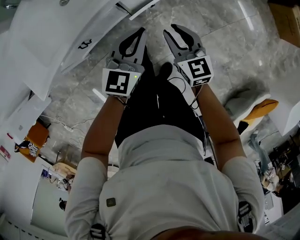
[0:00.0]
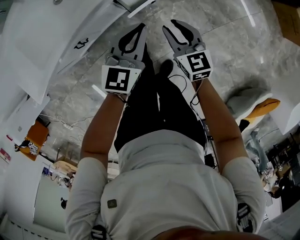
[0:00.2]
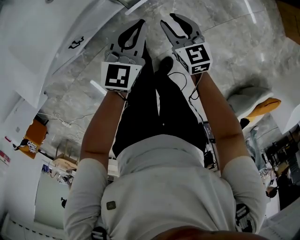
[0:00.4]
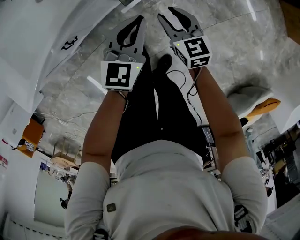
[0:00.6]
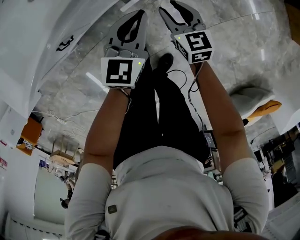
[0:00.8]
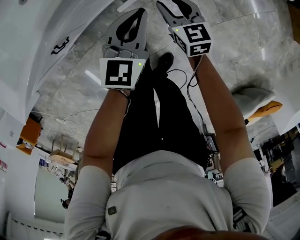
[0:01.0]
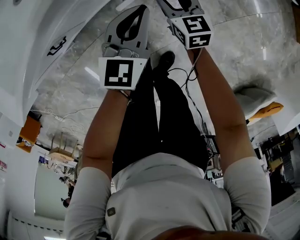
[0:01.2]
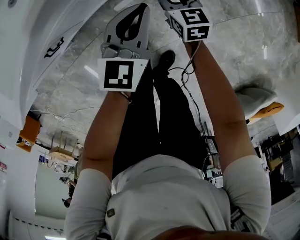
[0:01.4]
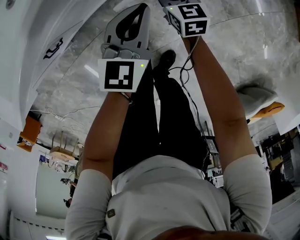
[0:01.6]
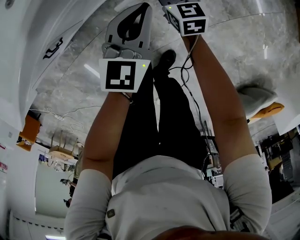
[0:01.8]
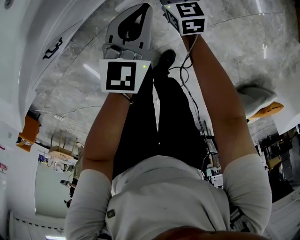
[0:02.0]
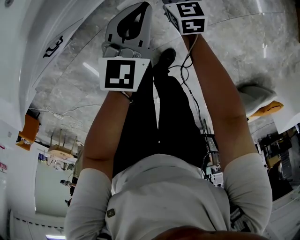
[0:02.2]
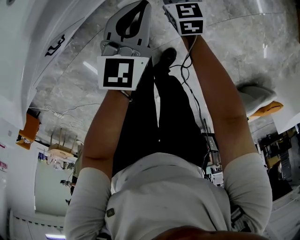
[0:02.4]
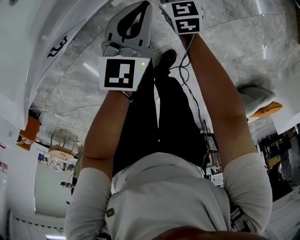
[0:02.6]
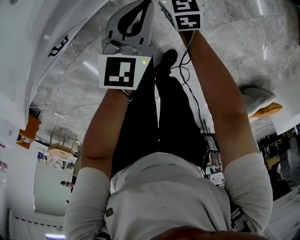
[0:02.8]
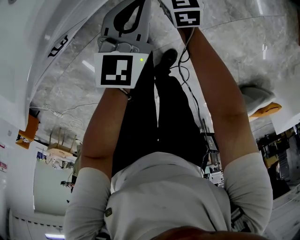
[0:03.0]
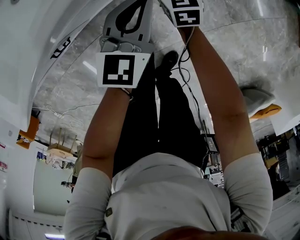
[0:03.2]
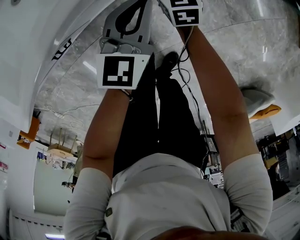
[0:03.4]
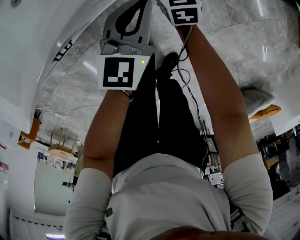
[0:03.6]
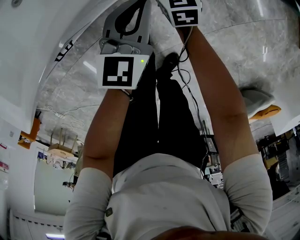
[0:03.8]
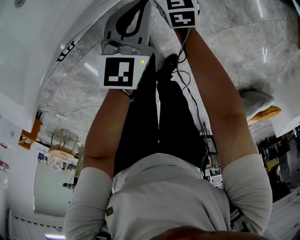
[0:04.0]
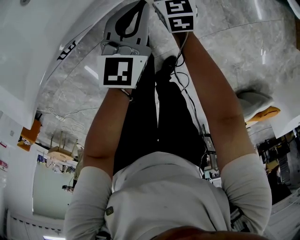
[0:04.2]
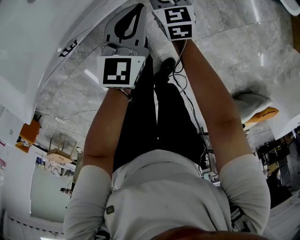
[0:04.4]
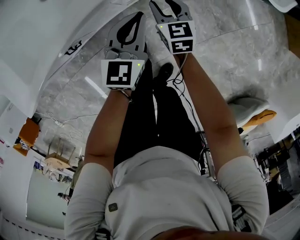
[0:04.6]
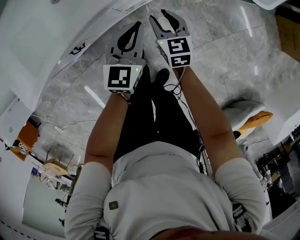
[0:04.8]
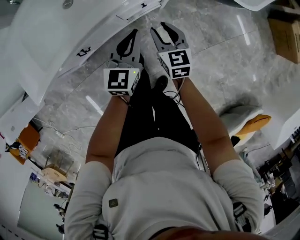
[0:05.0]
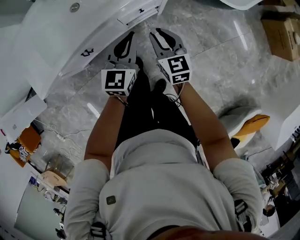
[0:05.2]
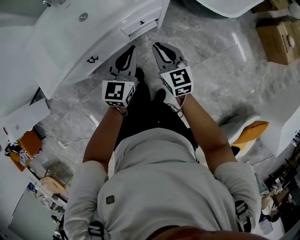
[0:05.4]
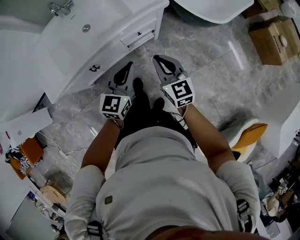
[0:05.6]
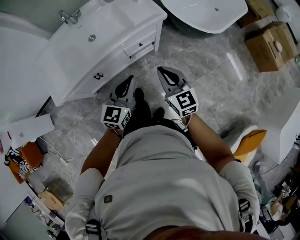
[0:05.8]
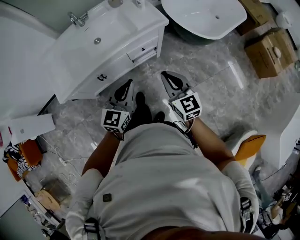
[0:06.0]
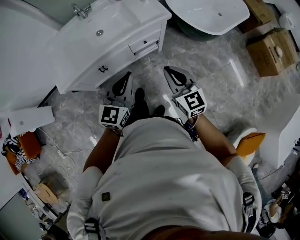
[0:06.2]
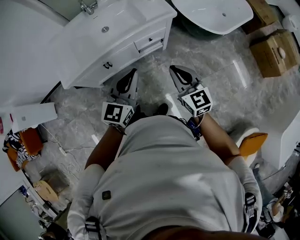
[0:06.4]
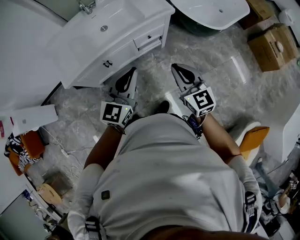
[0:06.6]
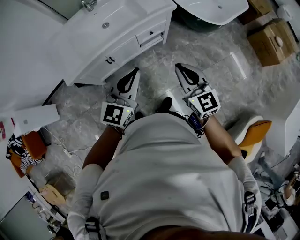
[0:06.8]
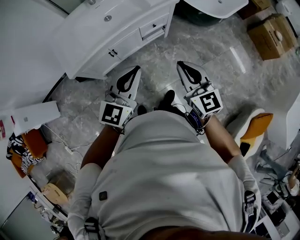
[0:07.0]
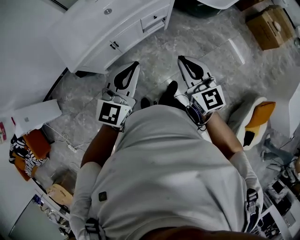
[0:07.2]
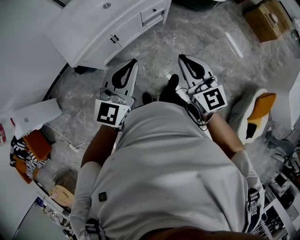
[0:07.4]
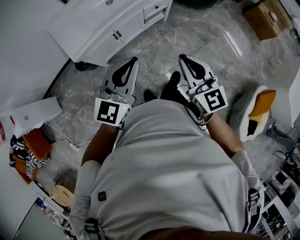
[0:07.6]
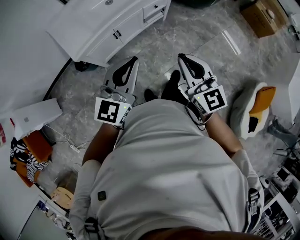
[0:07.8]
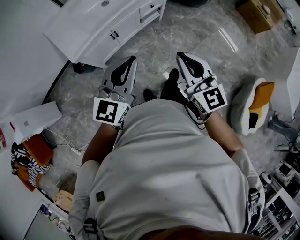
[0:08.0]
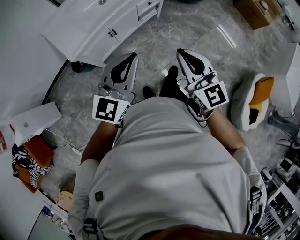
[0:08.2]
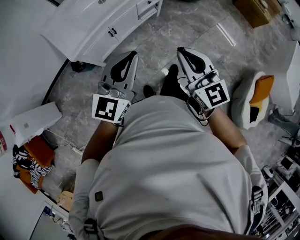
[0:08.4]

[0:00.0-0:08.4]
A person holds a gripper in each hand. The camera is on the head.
0:00.0 to 0:01.4: Both grippers move downward, about 25 cm.
0:01.4 to 0:02.8: The right gripper travels forward by approximately 5 cm.
0:02.8 to 0:04.2: The right gripper shifts by approximately 5 cm.
0:04.2 to 0:05.6: The grippers both shift upward and backward by roughly 50 cm. The right gripper swivels approximately 20 degrees, and closes its fingers.
0:05.6 to 0:07.0: The right gripper goes roughly 25 cm backward and upward; the left gripper goes roughly 30 cm backward, upward and to the left.
0:07.0 to 0:08.4: The two grippers go roughly 20 cm backward and to the left.

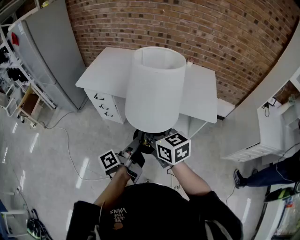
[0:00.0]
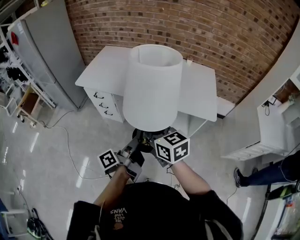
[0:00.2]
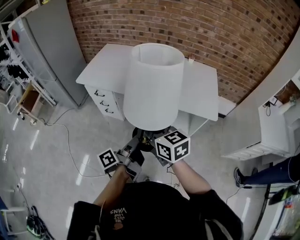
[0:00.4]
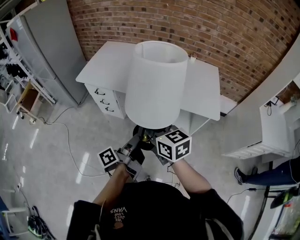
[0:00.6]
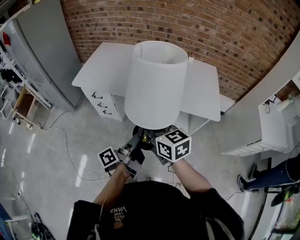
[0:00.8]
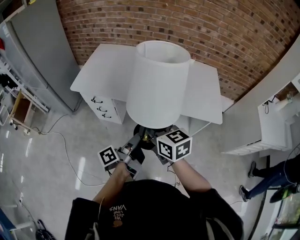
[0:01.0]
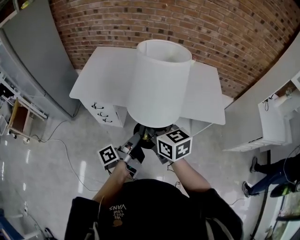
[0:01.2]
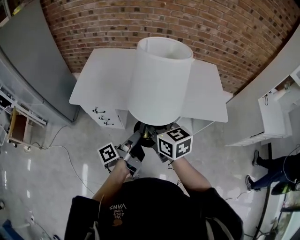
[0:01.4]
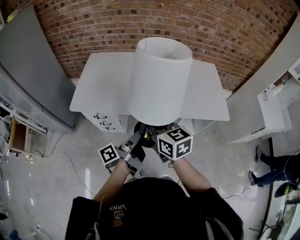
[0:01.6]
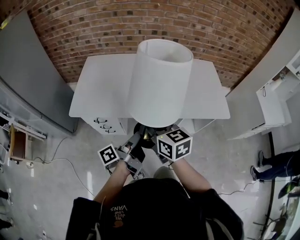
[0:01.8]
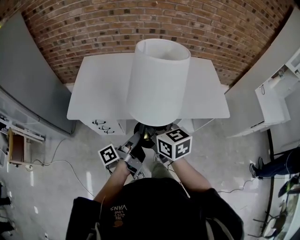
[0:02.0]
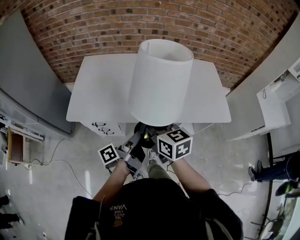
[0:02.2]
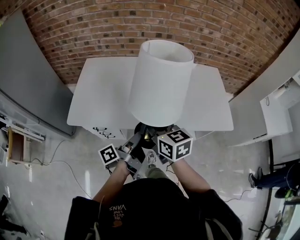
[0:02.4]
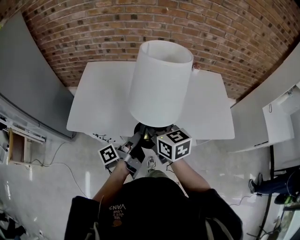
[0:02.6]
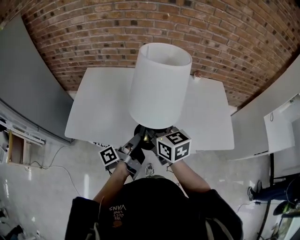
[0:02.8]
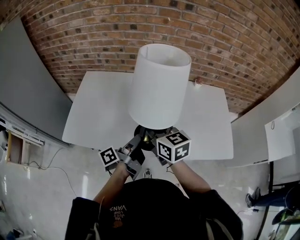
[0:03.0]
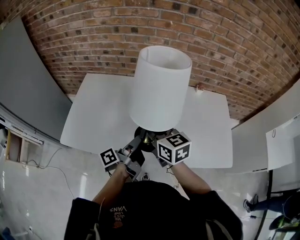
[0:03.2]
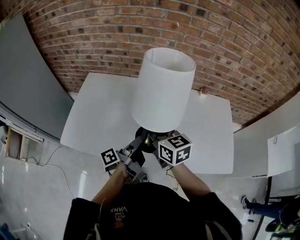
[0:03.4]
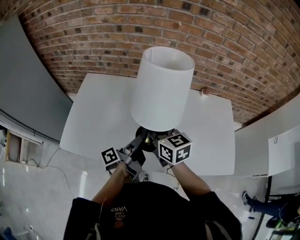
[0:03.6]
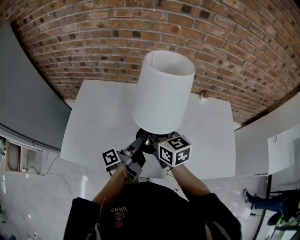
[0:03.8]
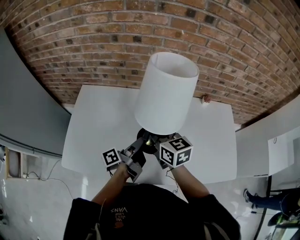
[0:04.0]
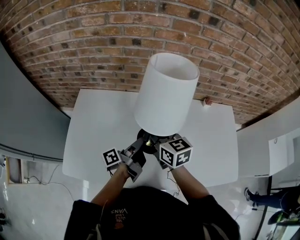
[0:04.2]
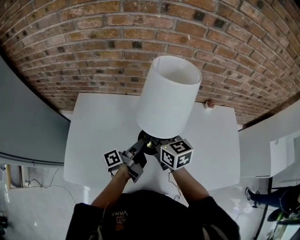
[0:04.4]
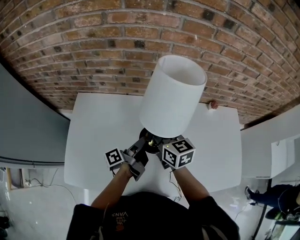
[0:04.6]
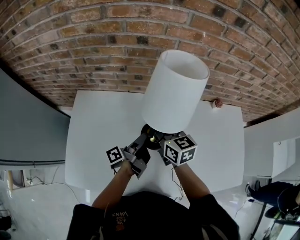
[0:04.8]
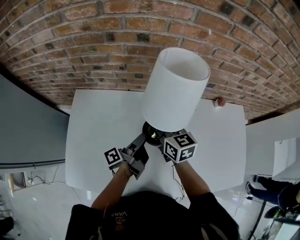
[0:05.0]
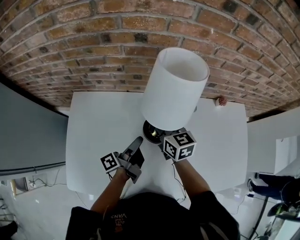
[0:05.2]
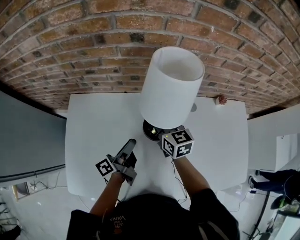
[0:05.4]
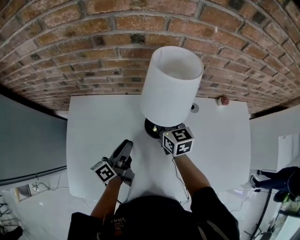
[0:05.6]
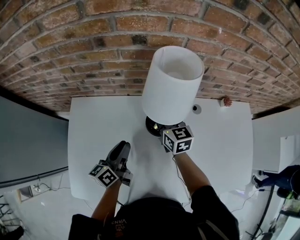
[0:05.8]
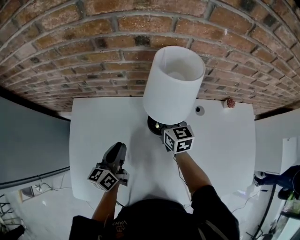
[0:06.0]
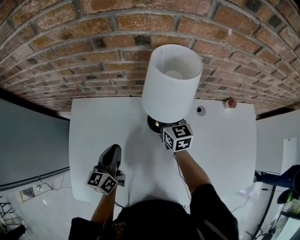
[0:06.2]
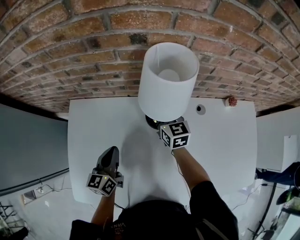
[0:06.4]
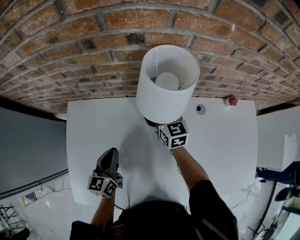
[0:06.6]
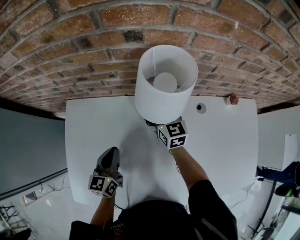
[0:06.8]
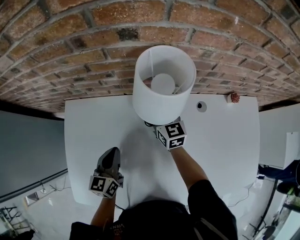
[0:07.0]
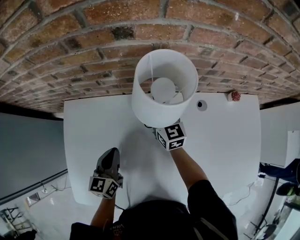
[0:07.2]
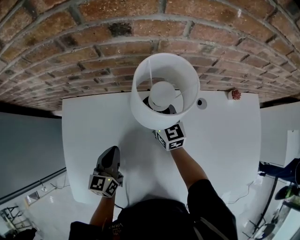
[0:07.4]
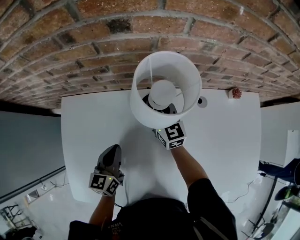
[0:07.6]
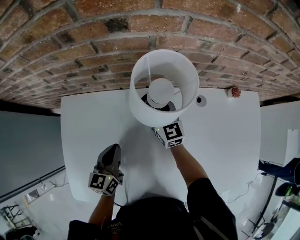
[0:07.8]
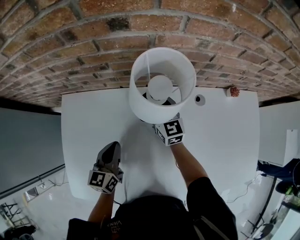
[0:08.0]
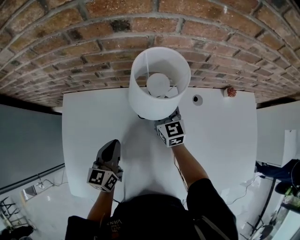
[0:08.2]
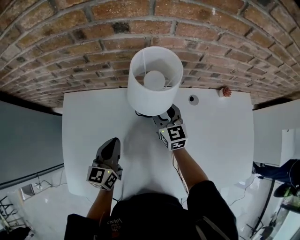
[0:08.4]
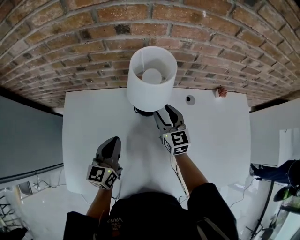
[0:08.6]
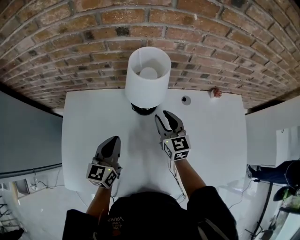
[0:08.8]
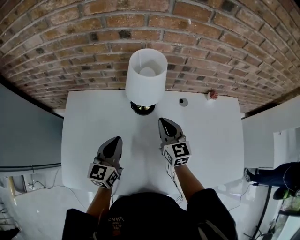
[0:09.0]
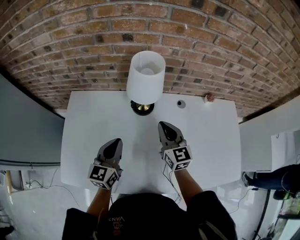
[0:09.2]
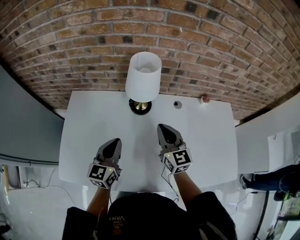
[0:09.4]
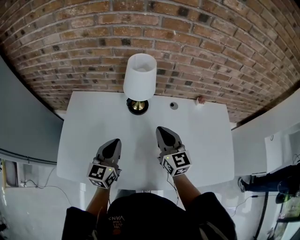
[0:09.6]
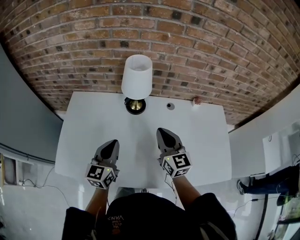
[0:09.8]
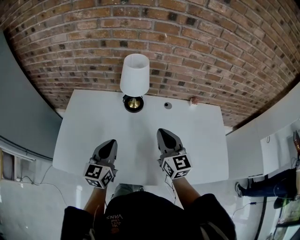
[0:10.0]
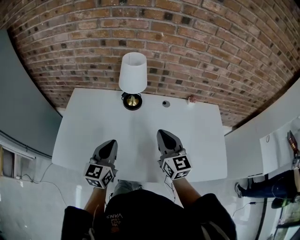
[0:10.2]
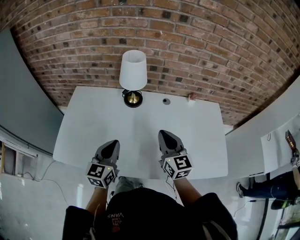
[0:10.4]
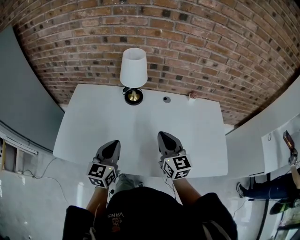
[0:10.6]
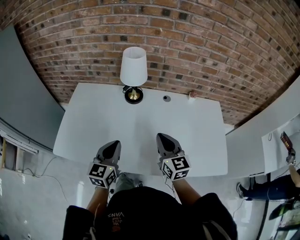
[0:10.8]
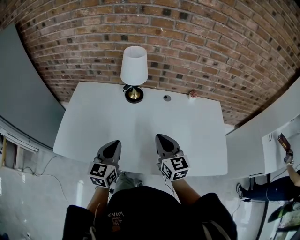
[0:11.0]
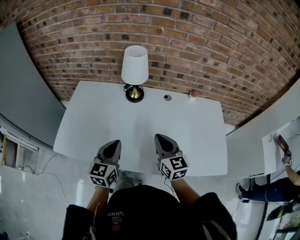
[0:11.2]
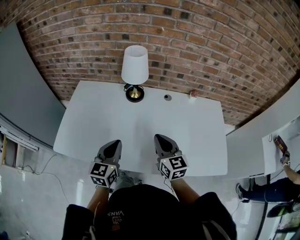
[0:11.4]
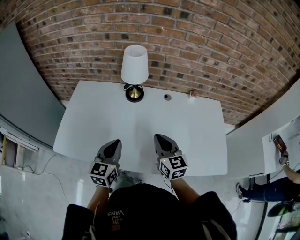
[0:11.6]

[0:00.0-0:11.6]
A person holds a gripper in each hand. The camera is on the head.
0:00.0 to 0:01.4: Both grippers travel together forward and to the left, roughly 20 cm.
0:01.4 to 0:02.8: The grippers both shift forward by some 20 cm.
0:02.8 to 0:04.4: Both grippers move forward, about 30 cm.
0:04.4 to 0:05.8: The left gripper shifts roughly 15 cm to the left and forward, and rolls clockwise, seen from behind, by about 40 degrees. The right gripper moves forward and downward, approximately 20 cm.
0:05.8 to 0:07.2: The left gripper changes its angle by approximately 30 degrees, and closes. Meanwhile the right gripper moves roughly 5 cm.
0:07.2 to 0:08.8: The left gripper goes some 10 cm upward and to the right. The right gripper shifts about 15 cm backward, to the right and upward.
0:08.8 to 0:10.2: The left gripper travels backward, upward and to the right by roughly 20 cm. The right gripper is displaced backward and upward by about 25 cm, and closes its fingers.
0:10.2 to 0:11.6: The two grippers go roughly 5 cm backward.

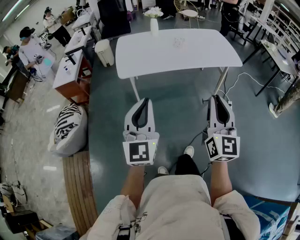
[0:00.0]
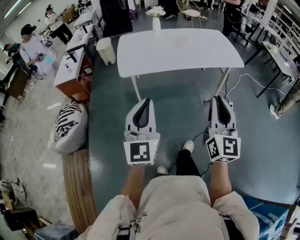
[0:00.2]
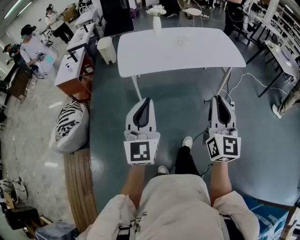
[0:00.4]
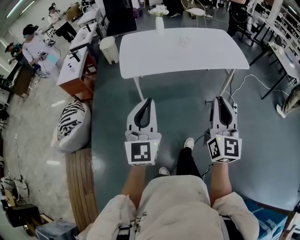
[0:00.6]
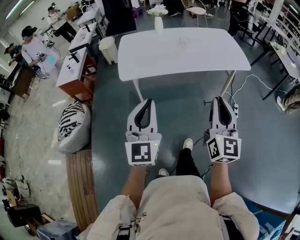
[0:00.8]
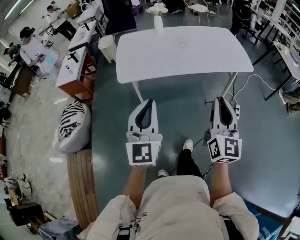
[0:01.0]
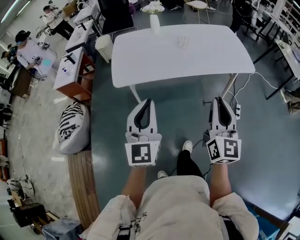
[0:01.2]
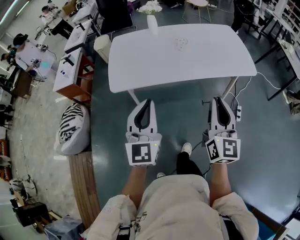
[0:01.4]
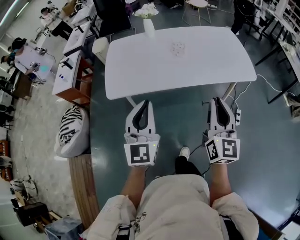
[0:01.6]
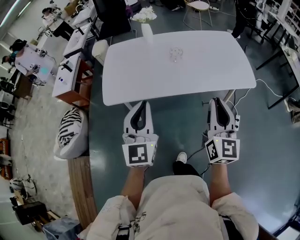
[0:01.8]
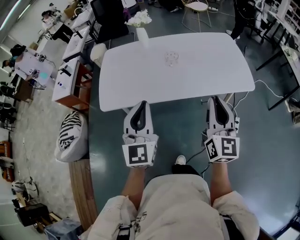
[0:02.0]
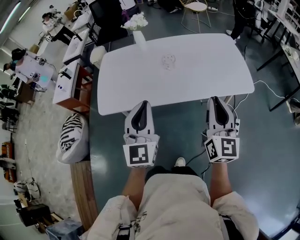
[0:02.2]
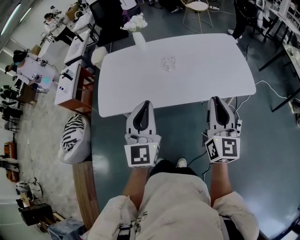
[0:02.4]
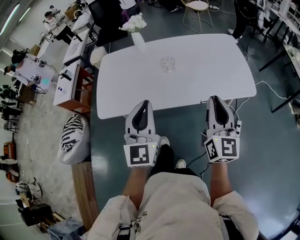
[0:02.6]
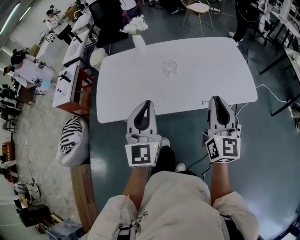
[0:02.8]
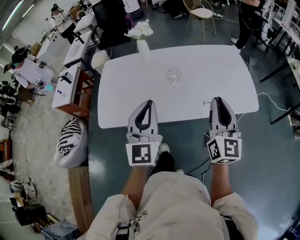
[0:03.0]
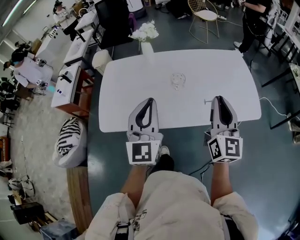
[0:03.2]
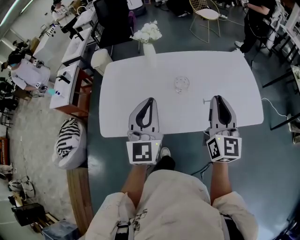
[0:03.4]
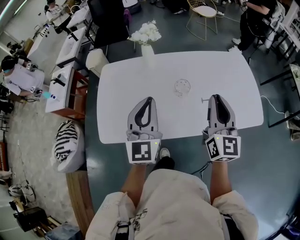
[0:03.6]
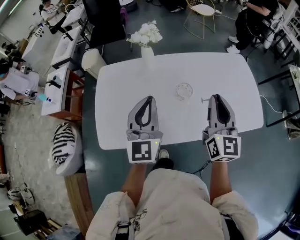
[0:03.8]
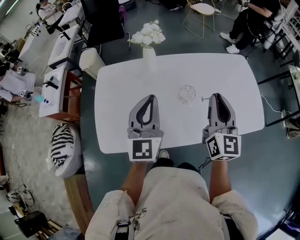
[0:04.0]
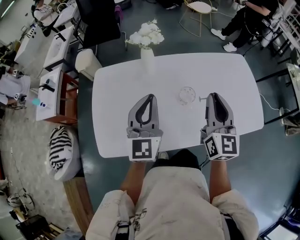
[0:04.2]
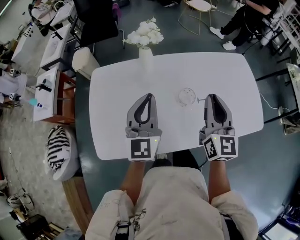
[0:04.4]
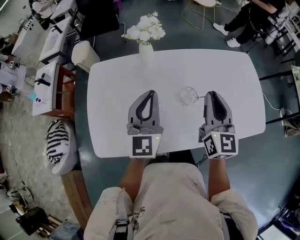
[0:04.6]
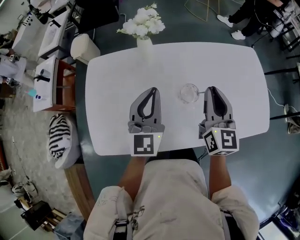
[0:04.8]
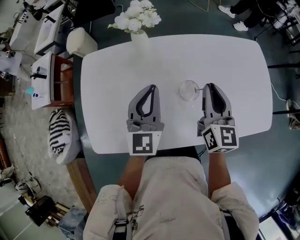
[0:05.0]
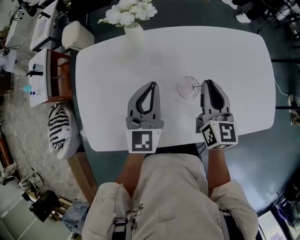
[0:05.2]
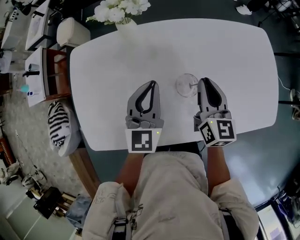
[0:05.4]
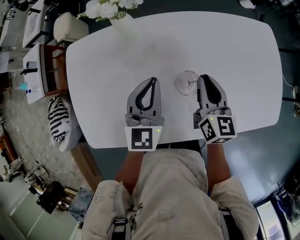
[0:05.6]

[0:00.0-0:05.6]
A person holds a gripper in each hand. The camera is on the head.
0:00.0 to 0:01.4: The grippers both shift forward by approximately 25 cm.
0:01.4 to 0:02.8: Both grippers move forward and to the right, roughly 25 cm.
0:02.8 to 0:04.2: The two grippers go about 30 cm forward and to the left.
0:04.2 to 0:05.6: Both grippers travel together downward and forward, about 25 cm. The right gripper swivels some 30 degrees.
